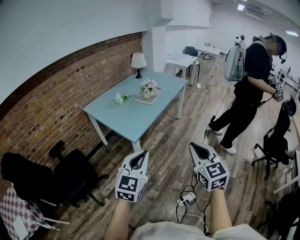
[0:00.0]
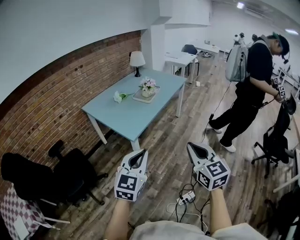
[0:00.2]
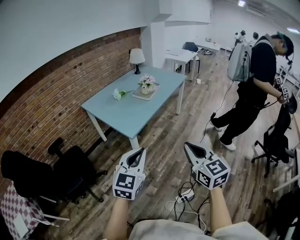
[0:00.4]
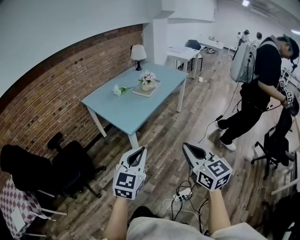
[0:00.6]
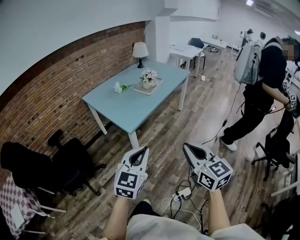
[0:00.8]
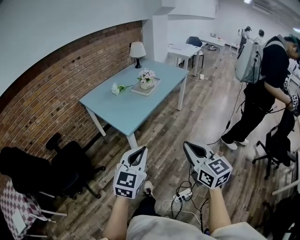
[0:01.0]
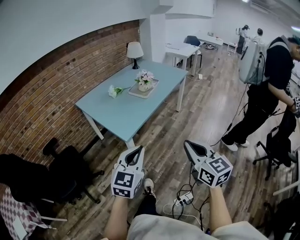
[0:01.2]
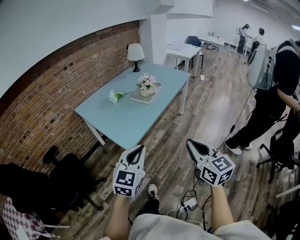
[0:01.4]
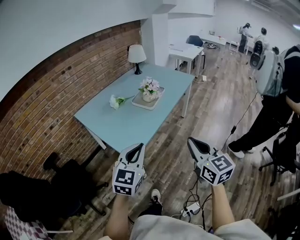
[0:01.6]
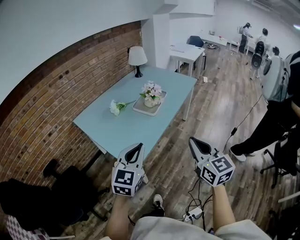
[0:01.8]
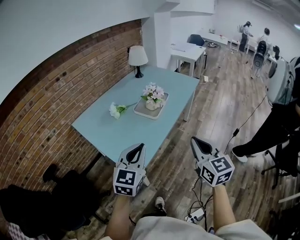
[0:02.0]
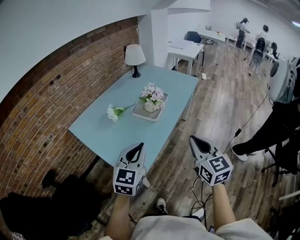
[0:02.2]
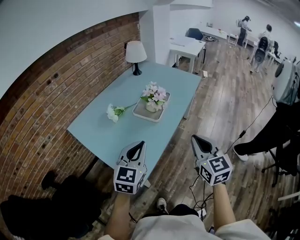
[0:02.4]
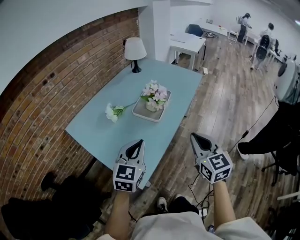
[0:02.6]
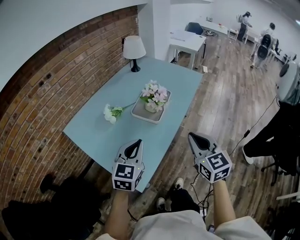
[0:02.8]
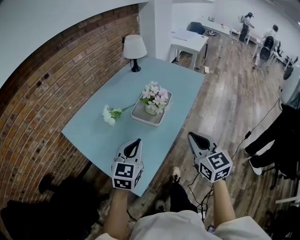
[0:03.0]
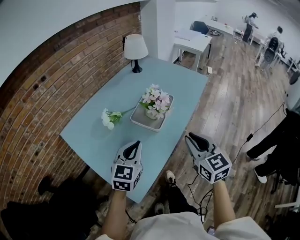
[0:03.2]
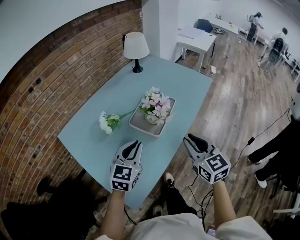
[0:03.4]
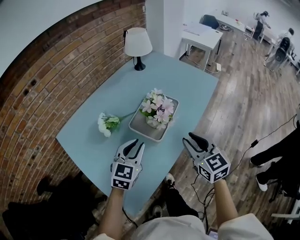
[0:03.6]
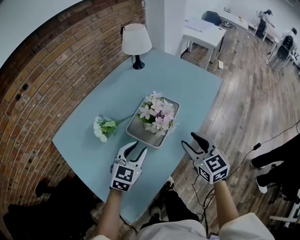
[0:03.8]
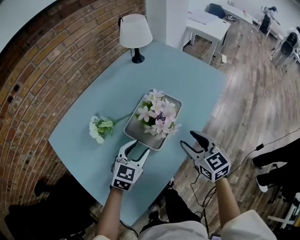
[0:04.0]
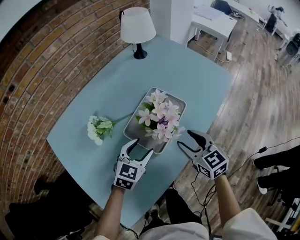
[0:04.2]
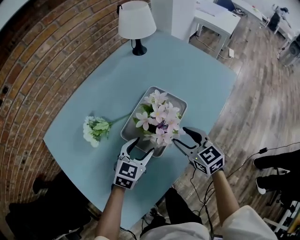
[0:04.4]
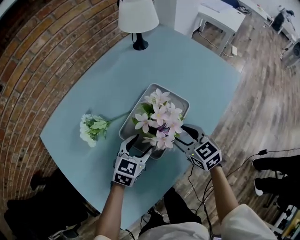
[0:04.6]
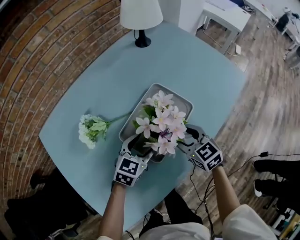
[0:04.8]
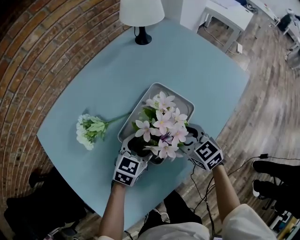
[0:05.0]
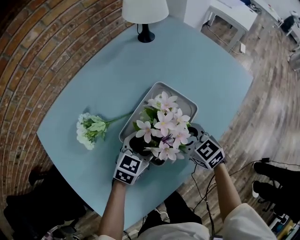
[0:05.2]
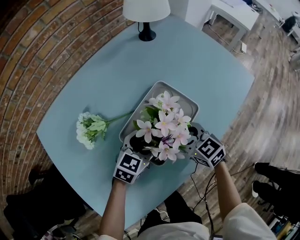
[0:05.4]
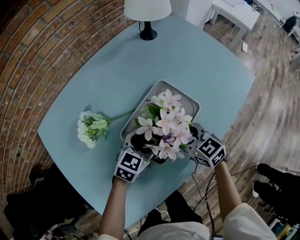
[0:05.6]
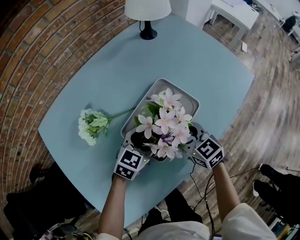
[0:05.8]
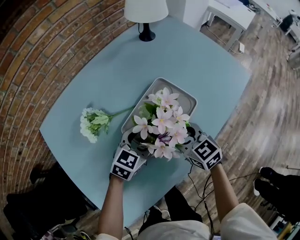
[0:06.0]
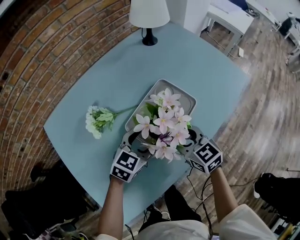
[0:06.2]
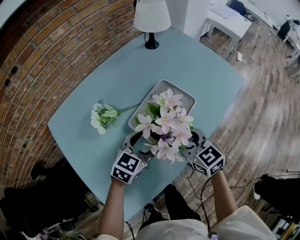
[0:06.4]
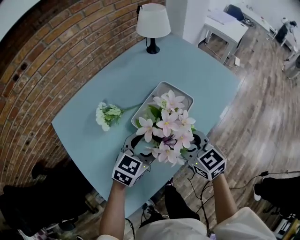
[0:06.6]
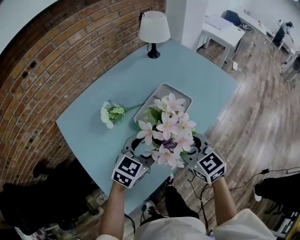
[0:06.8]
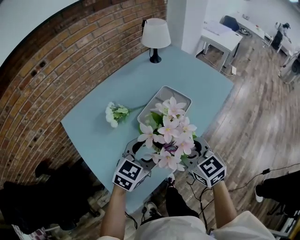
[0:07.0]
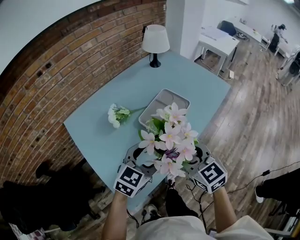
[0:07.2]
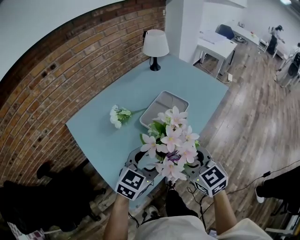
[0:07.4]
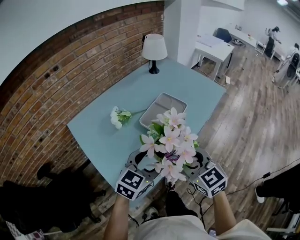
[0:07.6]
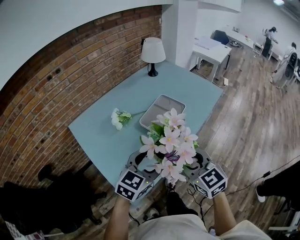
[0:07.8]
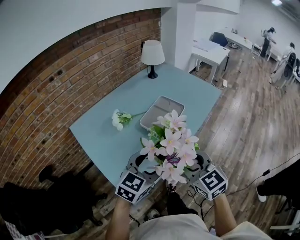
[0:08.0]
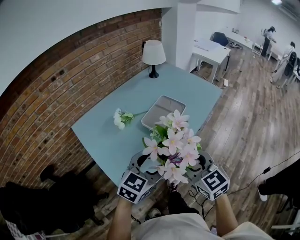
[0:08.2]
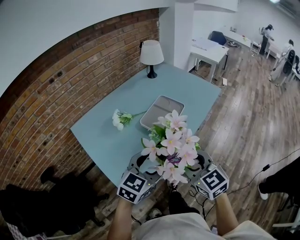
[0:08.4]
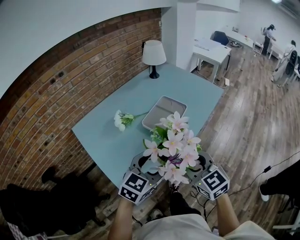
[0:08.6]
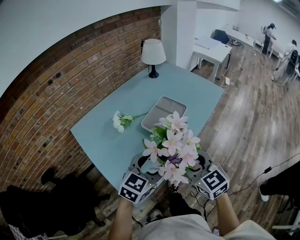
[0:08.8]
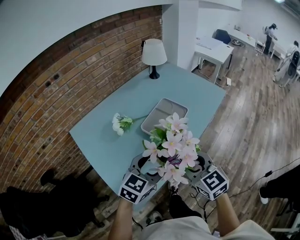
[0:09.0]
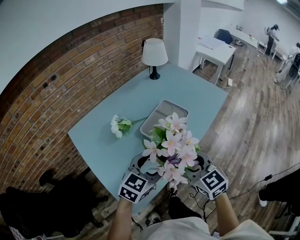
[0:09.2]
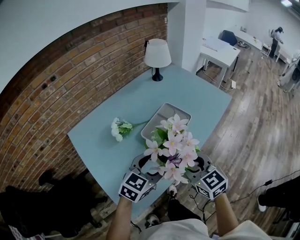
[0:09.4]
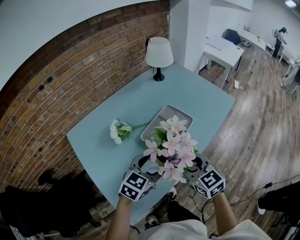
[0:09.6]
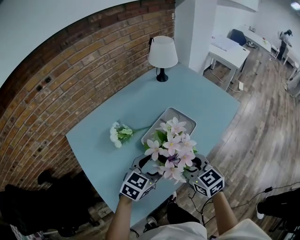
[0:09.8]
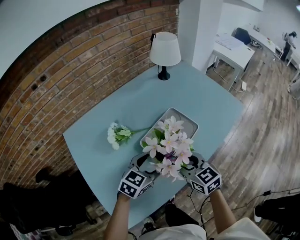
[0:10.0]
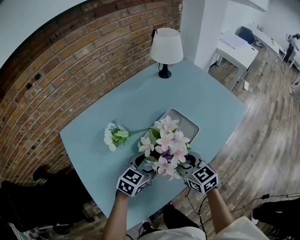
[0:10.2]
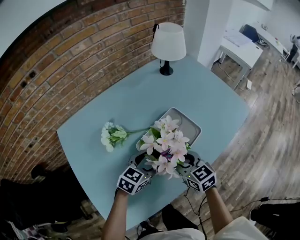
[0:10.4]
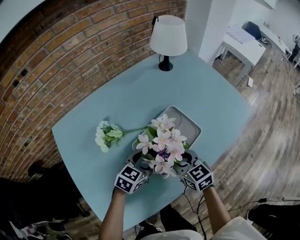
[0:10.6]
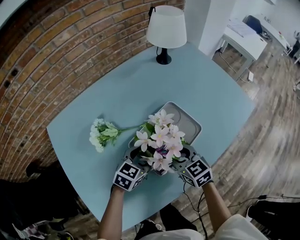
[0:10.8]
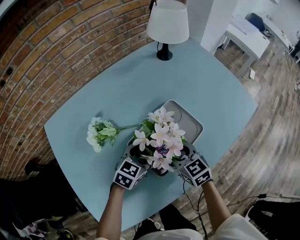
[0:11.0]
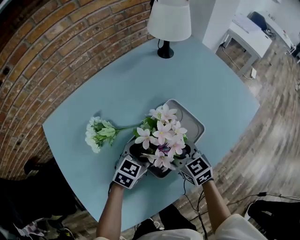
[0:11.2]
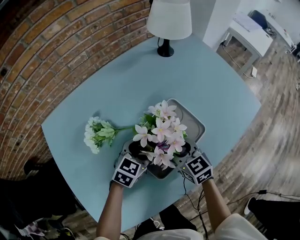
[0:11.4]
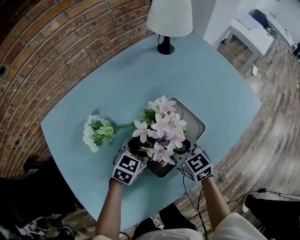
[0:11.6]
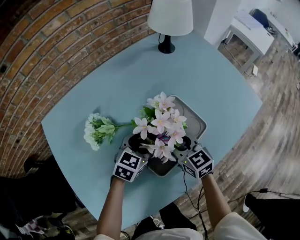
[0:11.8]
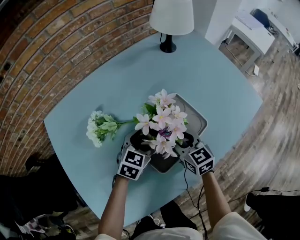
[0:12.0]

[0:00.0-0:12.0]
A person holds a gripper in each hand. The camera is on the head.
0.0 to 1.6 s: The two grippers go roughly 25 cm forward.
1.6 to 3.0 s: The grippers both shift forward by roughly 30 cm.
3.0 to 4.4 s: Both grippers travel together forward and downward, about 35 cm. The left gripper opens up. Meanwhile the right gripper changes its angle by about 30 degrees, and opens.
4.4 to 6.0 s: The right gripper shifts by about 5 cm; the left gripper changes place by roughly 5 cm.
6.0 to 7.6 s: Both grippers travel together backward and upward, some 35 cm.
7.6 to 9.0 s: The grippers make only small movements.
9.0 to 10.4 s: Both grippers travel together forward and downward, approximately 30 cm.
10.4 to 12.0 s: The grippers both shift forward and downward by some 10 cm.

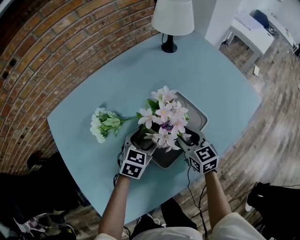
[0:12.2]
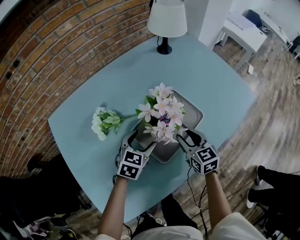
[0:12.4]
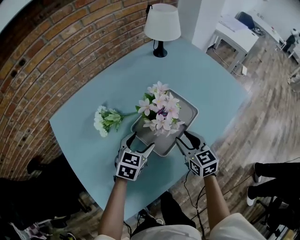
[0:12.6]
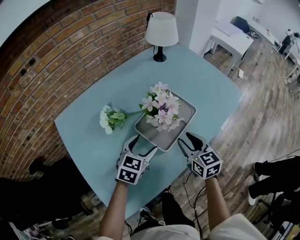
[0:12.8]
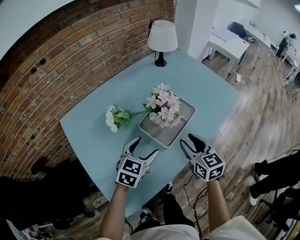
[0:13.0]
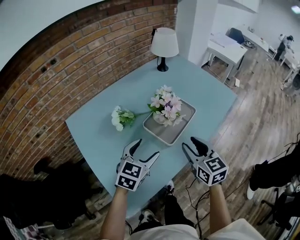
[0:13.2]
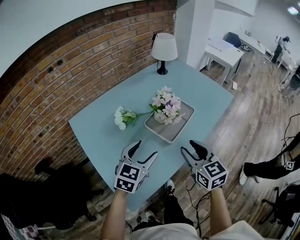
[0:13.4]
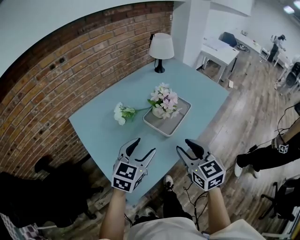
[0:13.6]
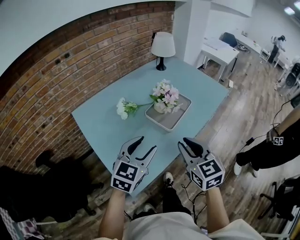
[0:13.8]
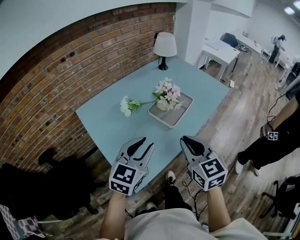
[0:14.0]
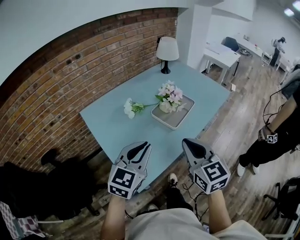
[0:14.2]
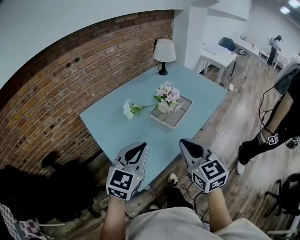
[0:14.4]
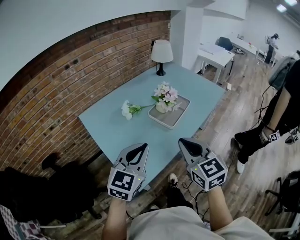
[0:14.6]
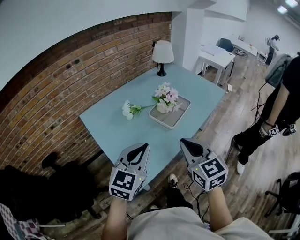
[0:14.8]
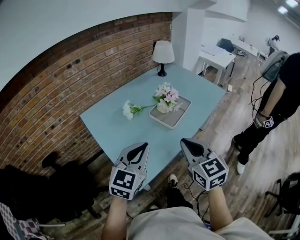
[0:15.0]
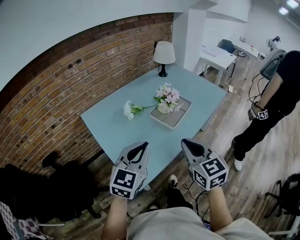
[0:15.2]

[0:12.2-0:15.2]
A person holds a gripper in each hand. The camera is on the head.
12.2 to 13.8 s: Both grippers travel together backward and upward, roughly 40 cm. The left gripper rotates roughly 30 degrees.
13.8 to 15.2 s: The left gripper goes approximately 10 cm backward and upward, and closes up. The right gripper goes about 10 cm backward.

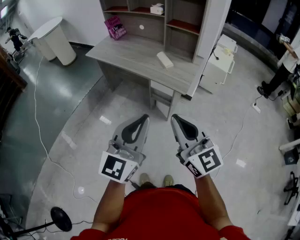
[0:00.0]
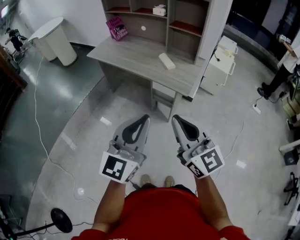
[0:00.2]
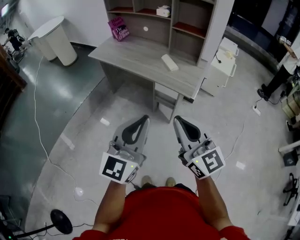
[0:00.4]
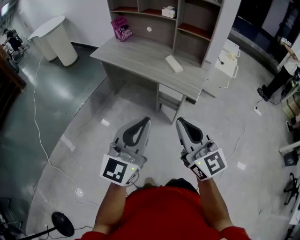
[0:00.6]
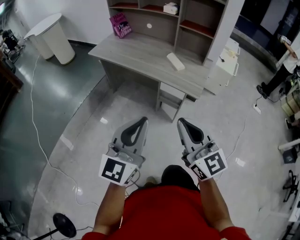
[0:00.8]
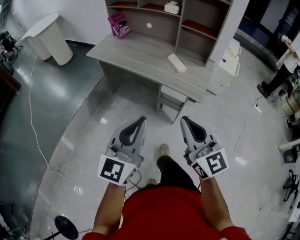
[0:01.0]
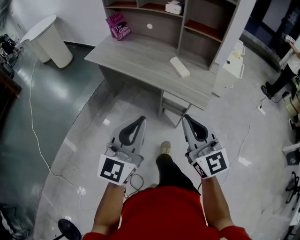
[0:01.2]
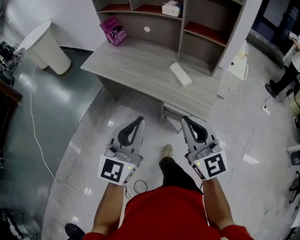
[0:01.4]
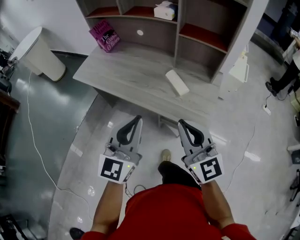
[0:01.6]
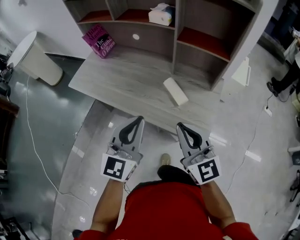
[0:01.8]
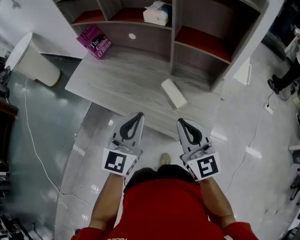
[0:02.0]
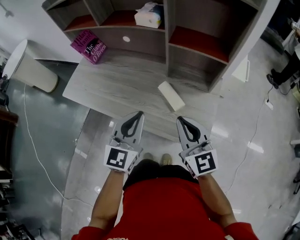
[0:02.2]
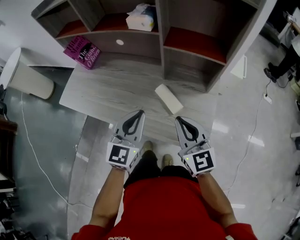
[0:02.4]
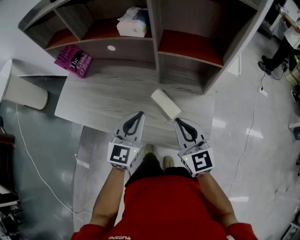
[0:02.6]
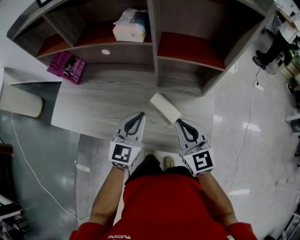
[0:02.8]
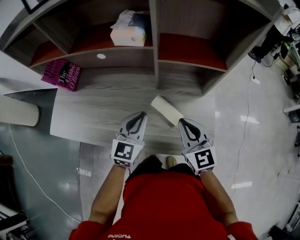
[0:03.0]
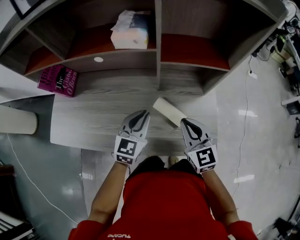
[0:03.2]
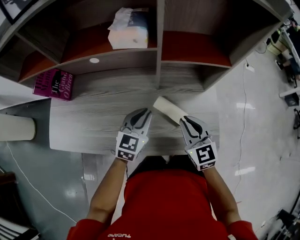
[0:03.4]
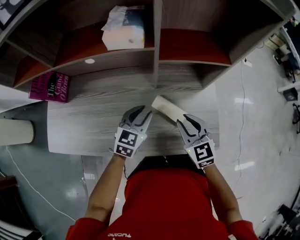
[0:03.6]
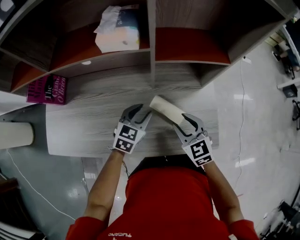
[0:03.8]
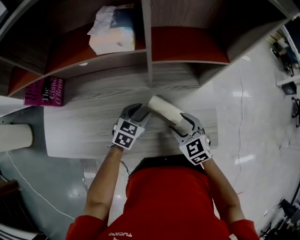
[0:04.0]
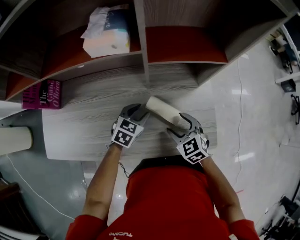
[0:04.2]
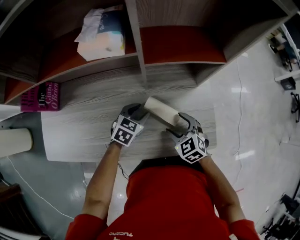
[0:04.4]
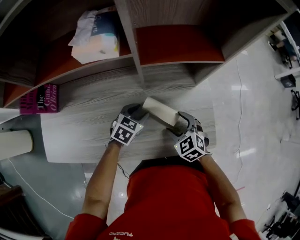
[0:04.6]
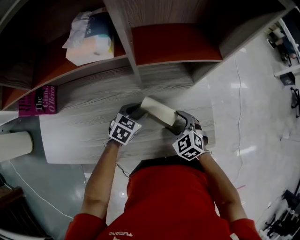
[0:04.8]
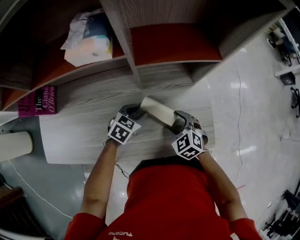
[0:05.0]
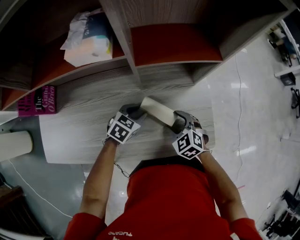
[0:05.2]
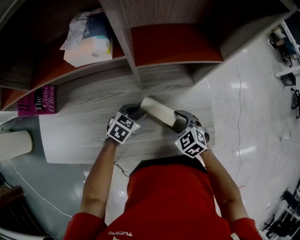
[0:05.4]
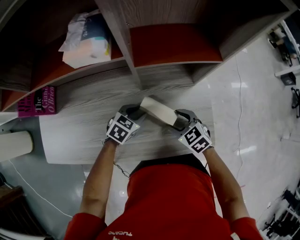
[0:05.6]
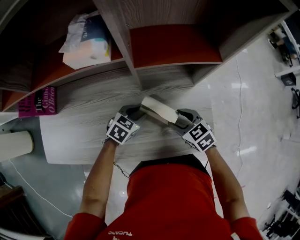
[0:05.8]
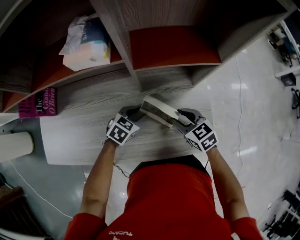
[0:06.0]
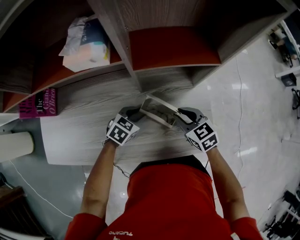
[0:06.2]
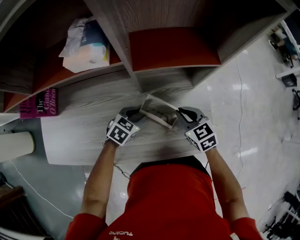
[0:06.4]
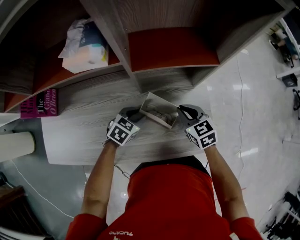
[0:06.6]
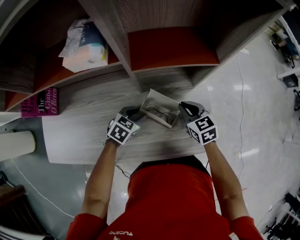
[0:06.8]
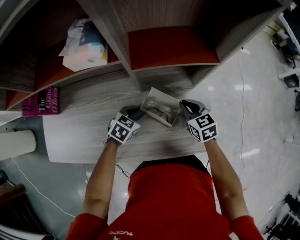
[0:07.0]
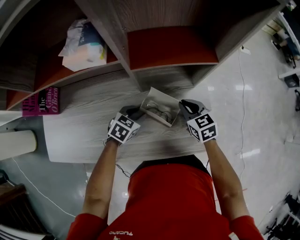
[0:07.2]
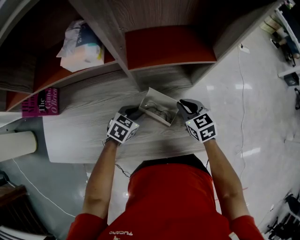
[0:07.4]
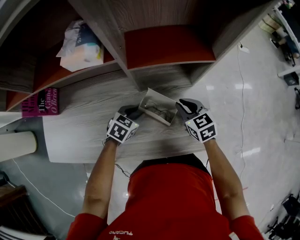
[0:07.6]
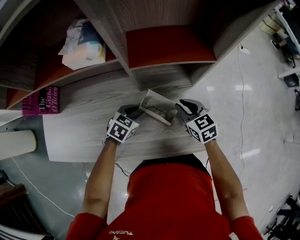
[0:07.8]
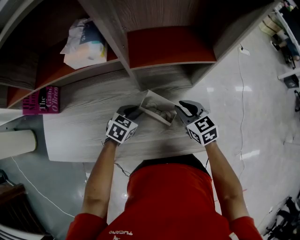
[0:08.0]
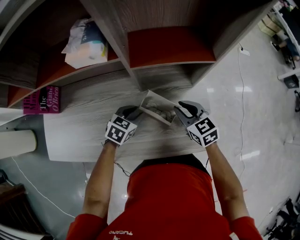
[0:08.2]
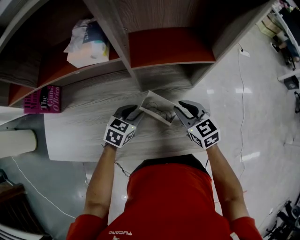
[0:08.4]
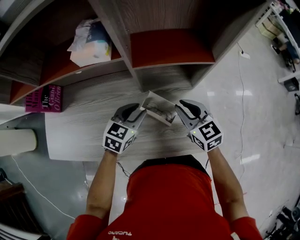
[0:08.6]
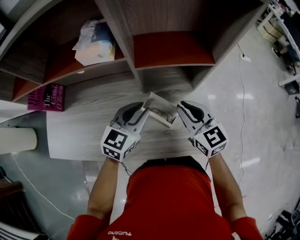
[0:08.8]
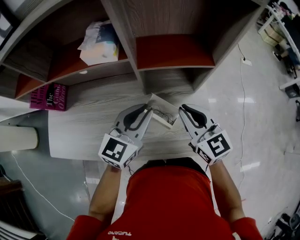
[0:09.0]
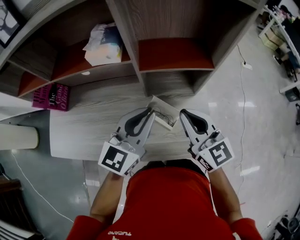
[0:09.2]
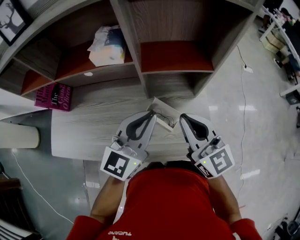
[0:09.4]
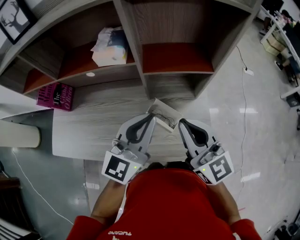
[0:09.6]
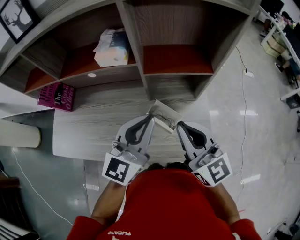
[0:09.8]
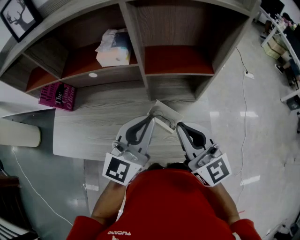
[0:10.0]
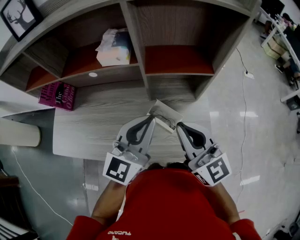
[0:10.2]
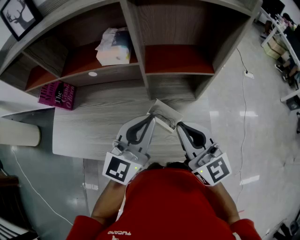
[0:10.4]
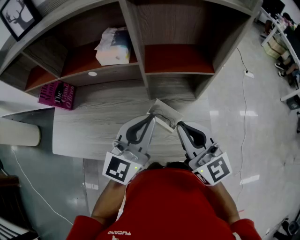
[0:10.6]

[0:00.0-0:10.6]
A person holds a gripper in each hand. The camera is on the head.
0.0 to 1.6 s: Both grippers travel together forward, roughly 30 cm.
1.6 to 3.0 s: Both grippers move forward and downward, some 30 cm. The right gripper swivels approximately 30 degrees. Meanwhile the left gripper rotates roughly 30 degrees.
3.0 to 4.6 s: The left gripper heads downward and forward, covering about 15 cm, tilts its fingers about 30 degrees downward, and opens up, while the right gripper shifts approximately 15 cm downward, tips its fingers downward by some 30 degrees, and opens up.
4.6 to 6.0 s: The right gripper moves some 5 cm, turns by approximately 20 degrees, and closes.
6.0 to 7.6 s: The right gripper is displaced forward by roughly 5 cm.
7.6 to 9.0 s: The grippers both shift upward by approximately 20 cm. The right gripper rotates roughly 30 degrees. The left gripper tilts its fingers roughly 40 degrees upward.
9.0 to 10.6 s: The right gripper shifts roughly 10 cm upward and backward. The left gripper is displaced upward by approximately 5 cm.
